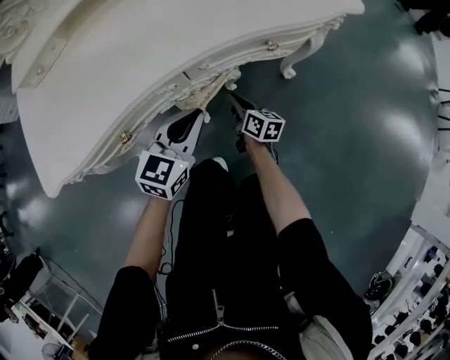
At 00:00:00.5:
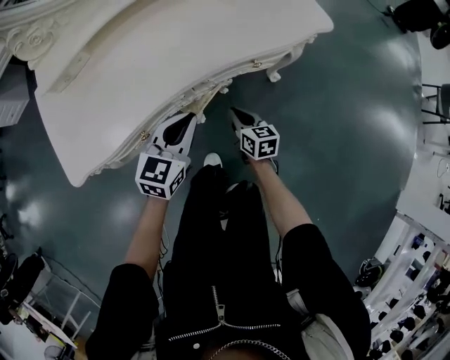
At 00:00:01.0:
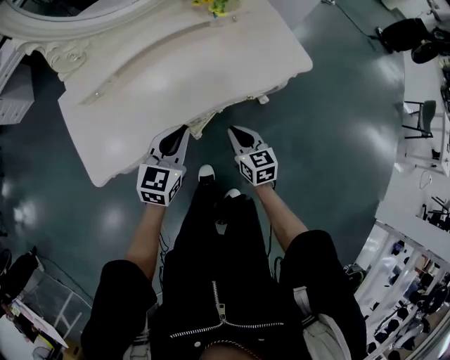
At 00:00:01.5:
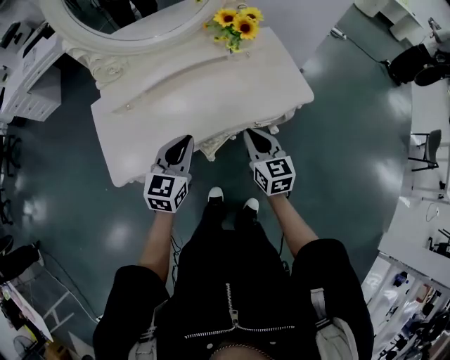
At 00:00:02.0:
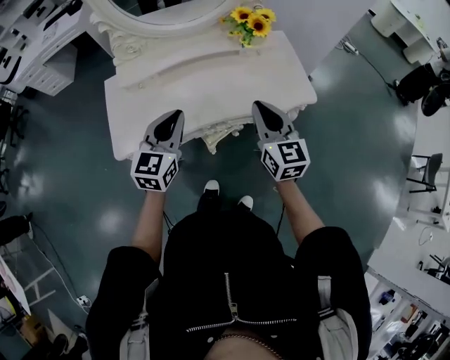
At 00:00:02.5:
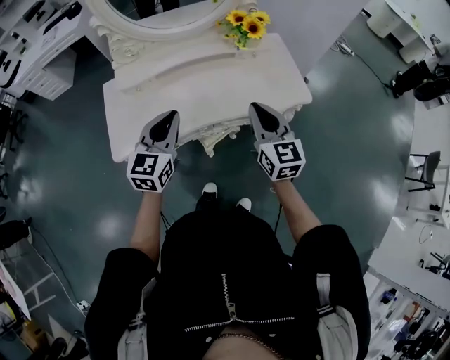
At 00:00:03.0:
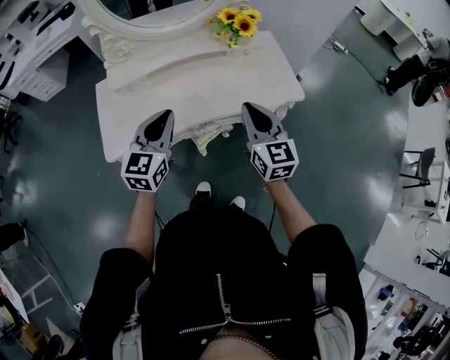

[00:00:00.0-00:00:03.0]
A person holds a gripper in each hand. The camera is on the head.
00:00:00.0 to 00:00:01.5: The two grippers go some 40 cm upward. The right gripper swivels approximately 40 degrees.
00:00:01.5 to 00:00:03.0: The left gripper goes approximately 10 cm upward, while the right gripper goes about 10 cm upward.

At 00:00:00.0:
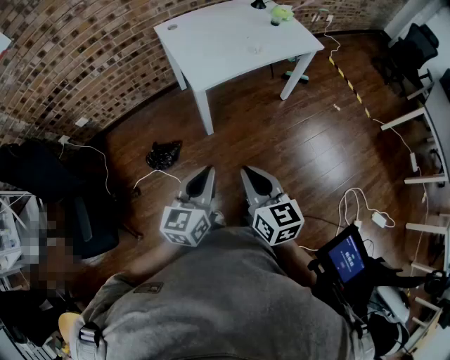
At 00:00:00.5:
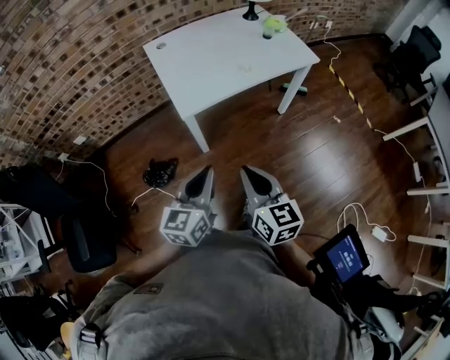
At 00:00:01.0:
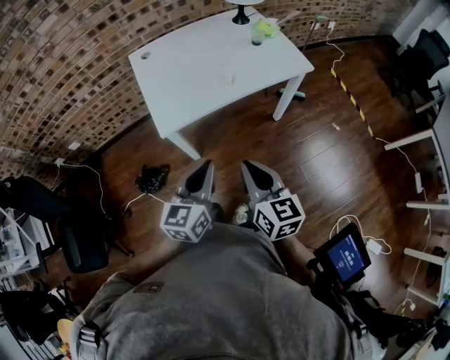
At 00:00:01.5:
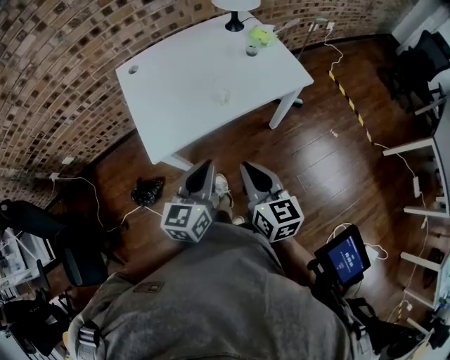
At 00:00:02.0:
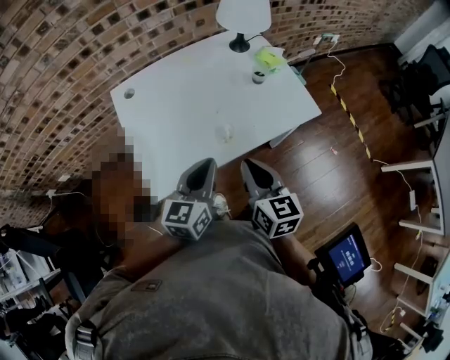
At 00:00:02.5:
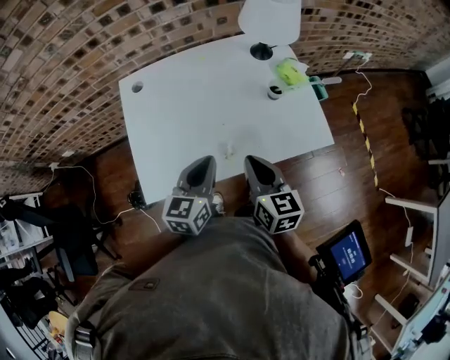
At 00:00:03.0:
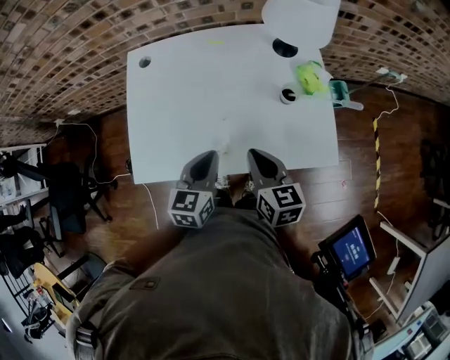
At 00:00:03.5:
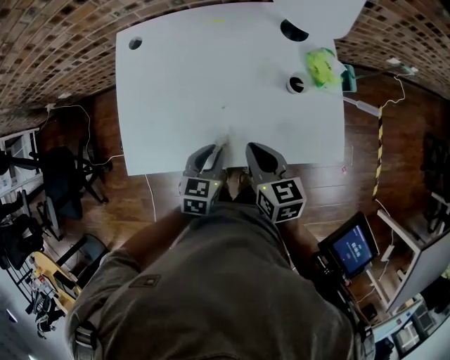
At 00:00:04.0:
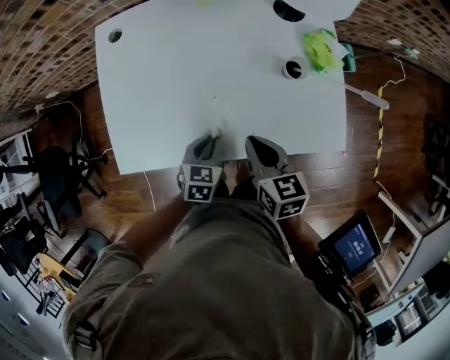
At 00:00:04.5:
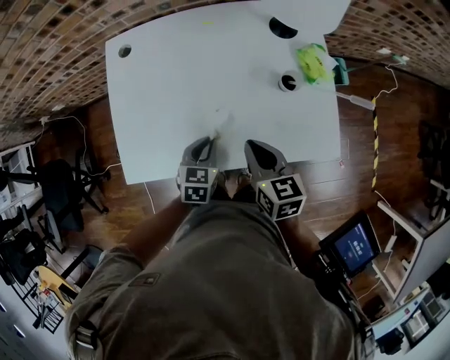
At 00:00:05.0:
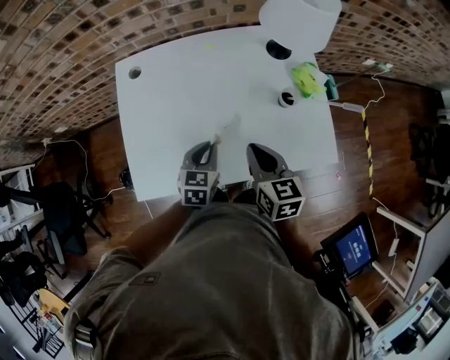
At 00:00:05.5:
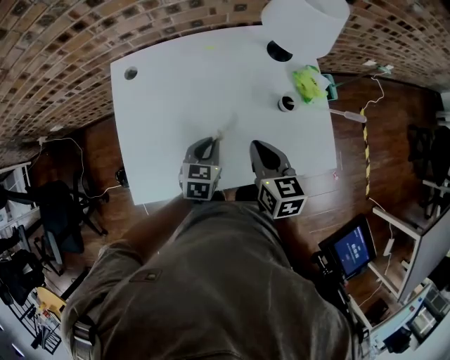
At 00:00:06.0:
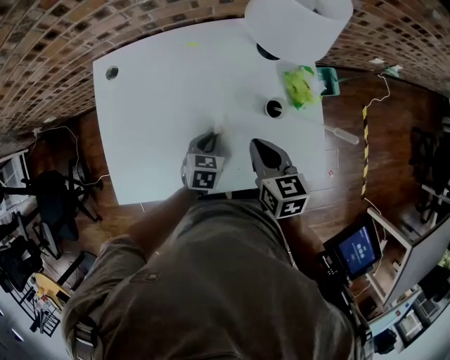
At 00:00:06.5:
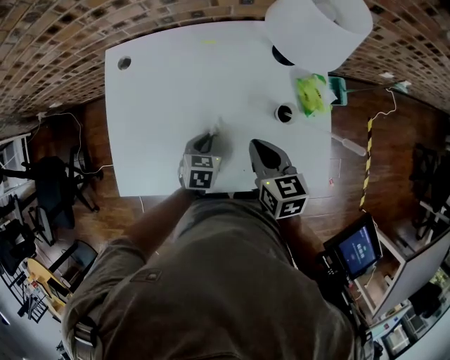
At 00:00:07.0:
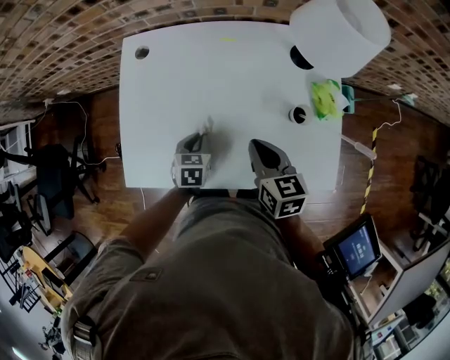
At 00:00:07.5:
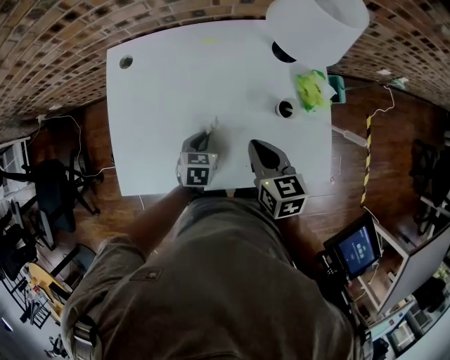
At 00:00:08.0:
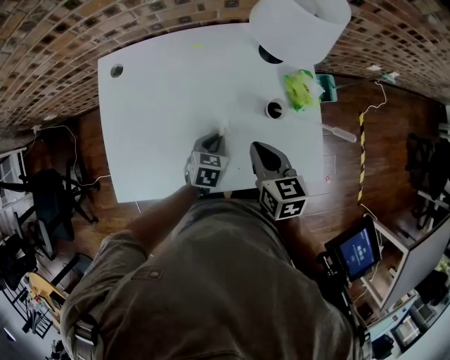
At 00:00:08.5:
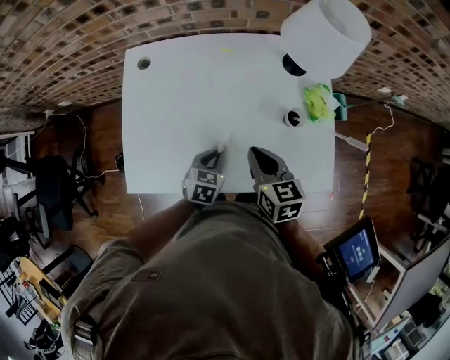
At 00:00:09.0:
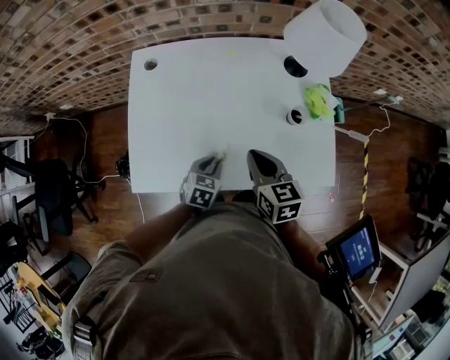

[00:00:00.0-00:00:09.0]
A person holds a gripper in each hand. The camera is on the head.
00:00:00.0 to 00:00:02.0: The two grippers travel together, forward and to the right, roughly 50 cm.
00:00:02.0 to 00:00:04.5: The left gripper shifts about 25 cm downward and forward, and tips its fingers downward by about 30 degrees. The right gripper goes about 20 cm forward, downward and to the right, and swivels roughly 30 degrees.
00:00:04.5 to 00:00:07.0: The right gripper shifts roughly 5 cm forward, and goes to the right and returns, approximately 5 cm each way; the left gripper is displaced forward and to the left by roughly 10 cm.
00:00:07.0 to 00:00:09.0: The left gripper is displaced backward by about 5 cm, and travels to the right and back again, approximately 15 cm each way; the right gripper moves roughly 5 cm to the right and comes back.

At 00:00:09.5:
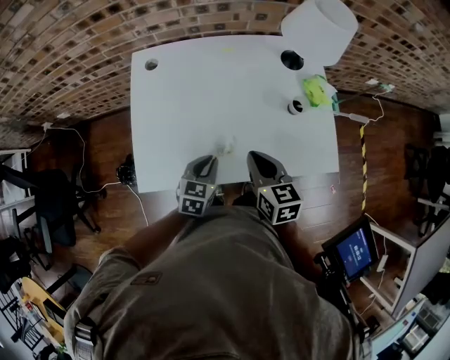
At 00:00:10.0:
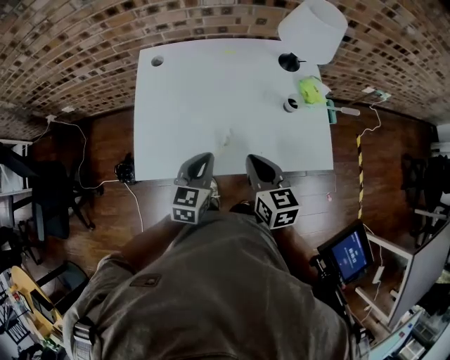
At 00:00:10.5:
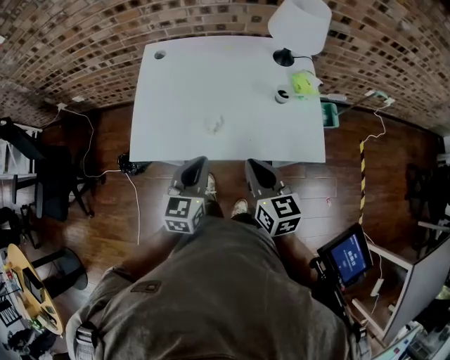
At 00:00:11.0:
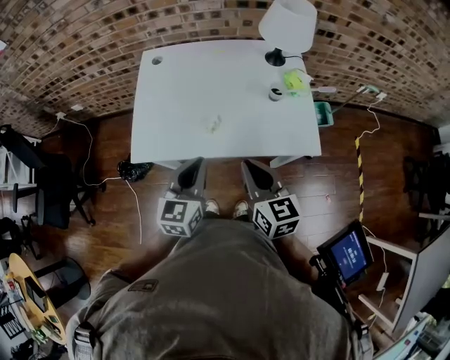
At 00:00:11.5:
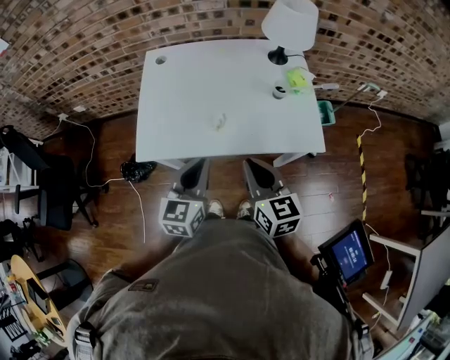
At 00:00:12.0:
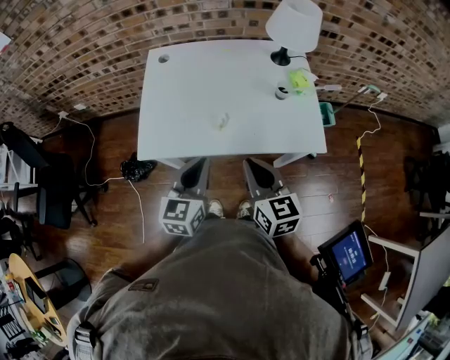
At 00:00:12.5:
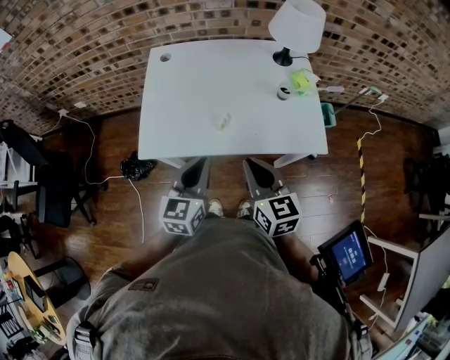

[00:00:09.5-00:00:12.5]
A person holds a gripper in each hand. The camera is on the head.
00:00:09.5 to 00:00:11.0: The left gripper travels upward and backward by roughly 20 cm, and turns by some 30 degrees, while the right gripper is displaced backward and upward by about 15 cm.
00:00:11.0 to 00:00:12.5: The grippers stay close to where they were, moving slightly.

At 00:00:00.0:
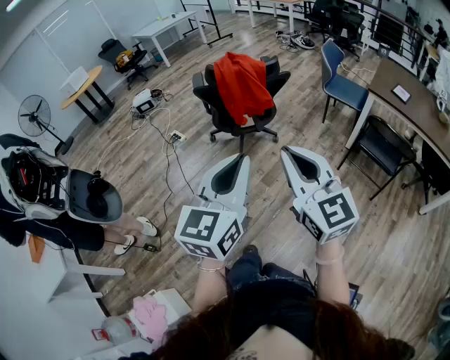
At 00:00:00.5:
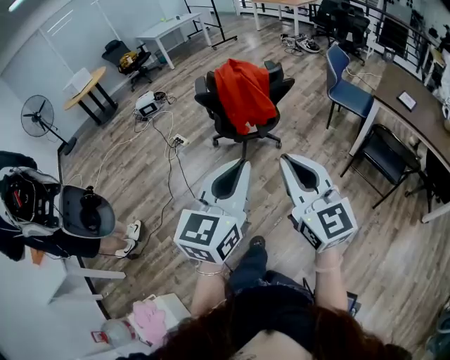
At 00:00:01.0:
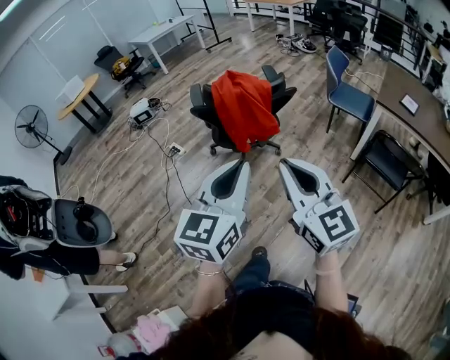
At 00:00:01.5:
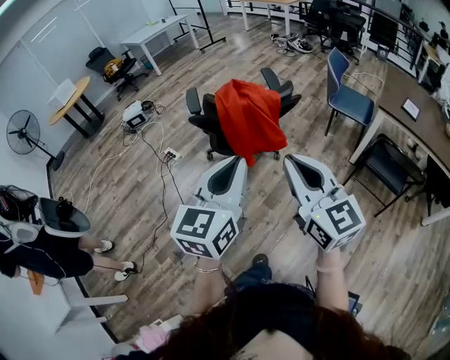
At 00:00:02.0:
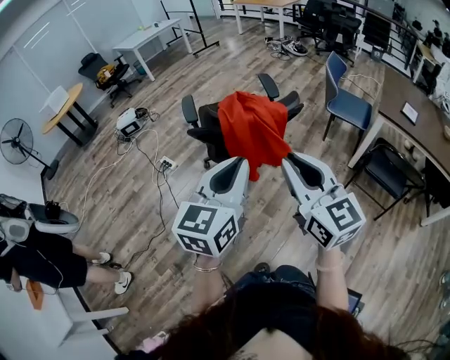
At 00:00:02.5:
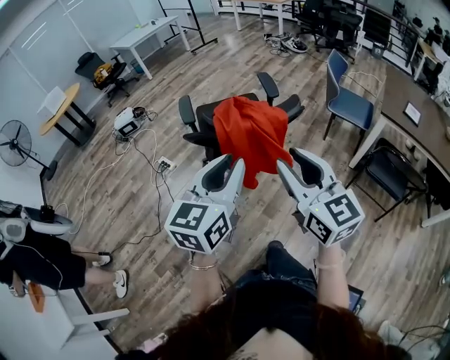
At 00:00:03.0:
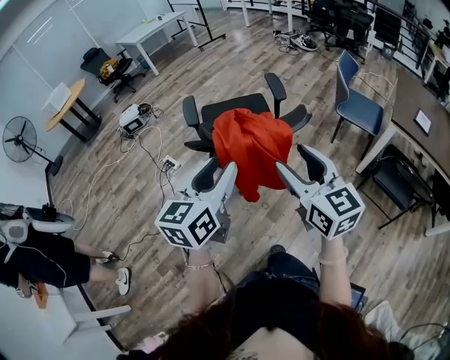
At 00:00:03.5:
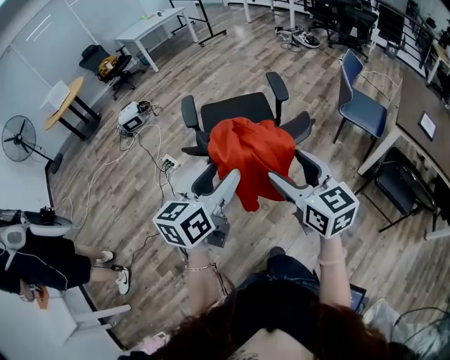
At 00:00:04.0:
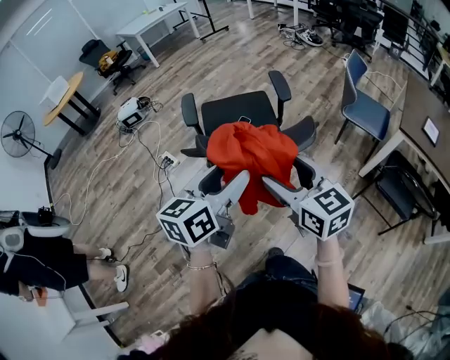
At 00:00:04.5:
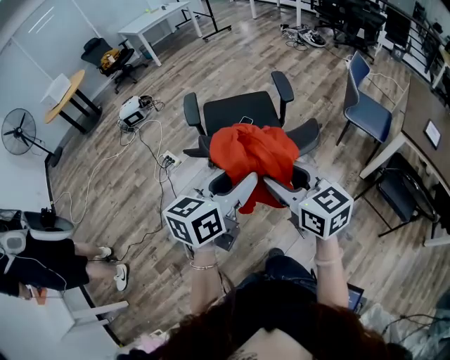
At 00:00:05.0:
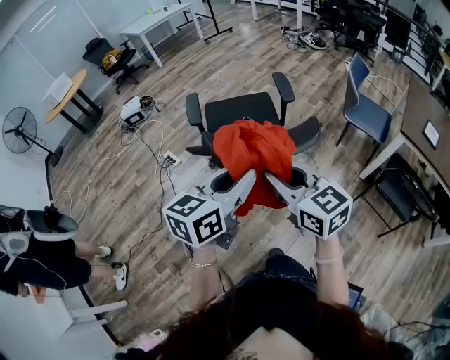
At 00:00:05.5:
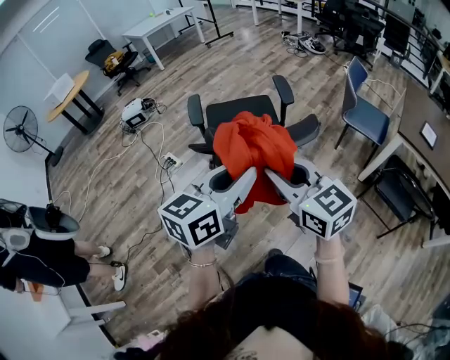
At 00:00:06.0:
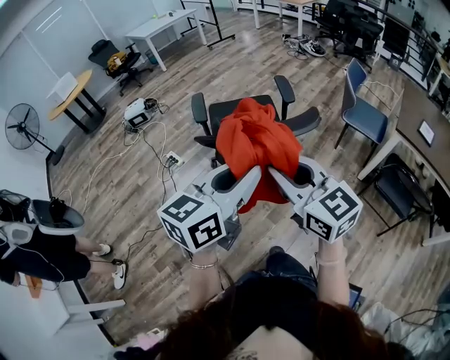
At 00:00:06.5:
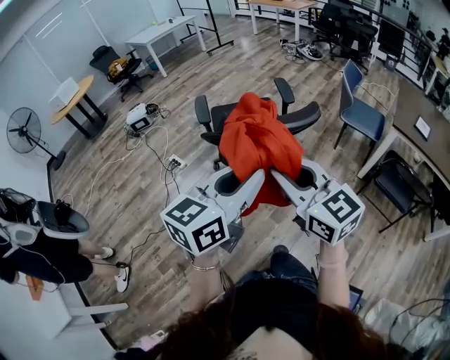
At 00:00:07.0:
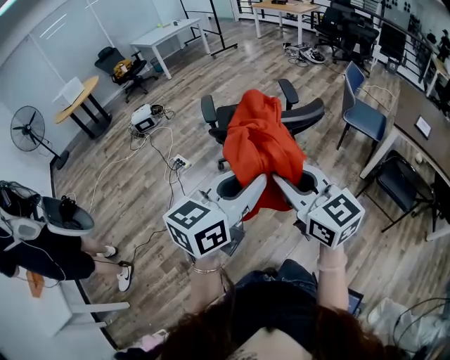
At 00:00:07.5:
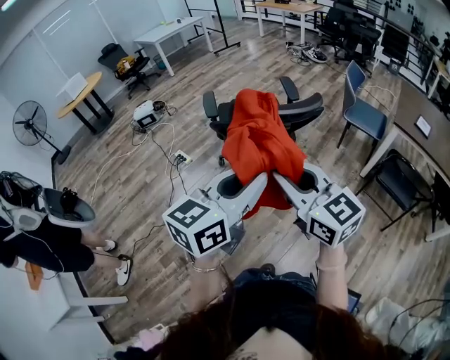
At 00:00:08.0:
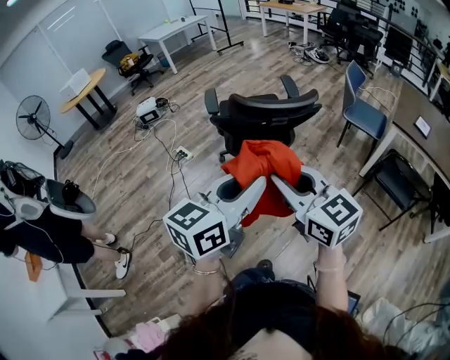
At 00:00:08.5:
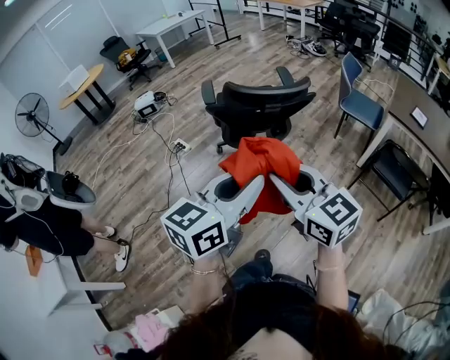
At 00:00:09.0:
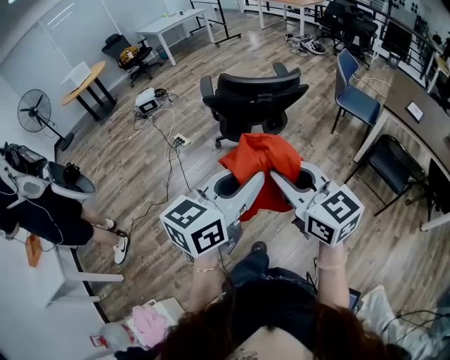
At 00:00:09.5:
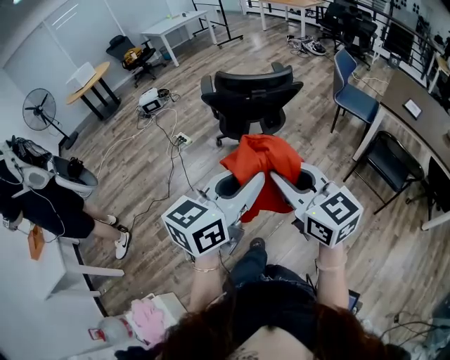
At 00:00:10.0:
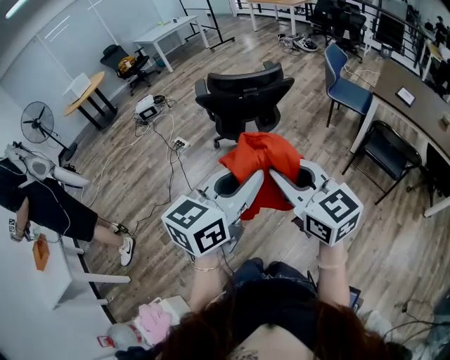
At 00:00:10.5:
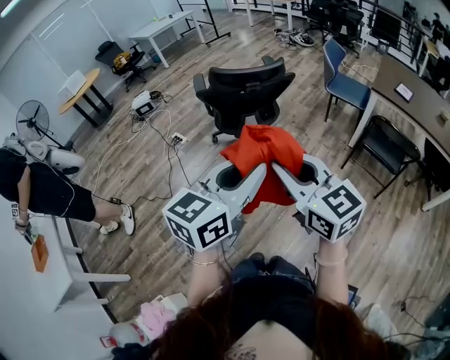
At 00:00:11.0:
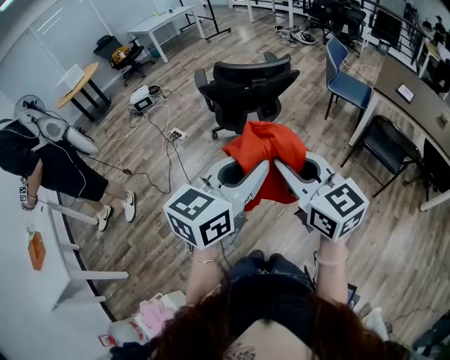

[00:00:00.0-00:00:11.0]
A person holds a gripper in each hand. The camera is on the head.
00:00:00.0 to 00:00:02.0: Both grippers travel together forward, some 25 cm.
00:00:02.0 to 00:00:03.5: Both grippers travel together forward and downward, roughly 15 cm. The right gripper opens its fingers. Meanwhile the left gripper opens up.
00:00:03.5 to 00:00:05.5: The left gripper shifts by roughly 5 cm, and closes up. The right gripper travels to the left by some 5 cm, and closes.
00:00:05.5 to 00:00:07.5: The grippers both shift backward by about 15 cm.
00:00:07.5 to 00:00:09.0: Both grippers move backward, approximately 15 cm.
00:00:09.0 to 00:00:11.0: Both grippers travel together backward, roughly 5 cm.
